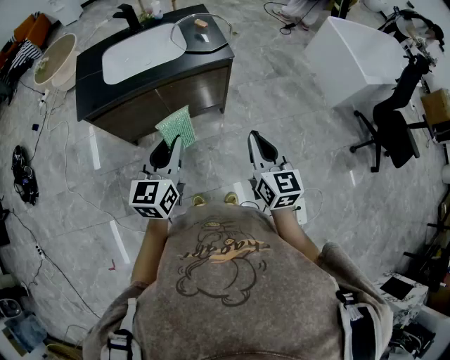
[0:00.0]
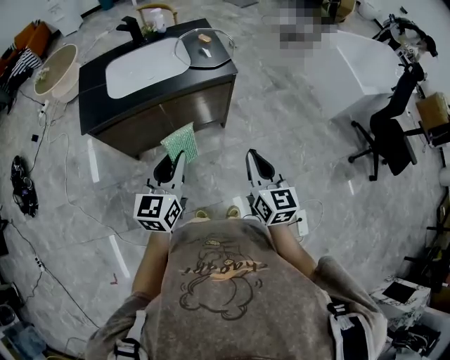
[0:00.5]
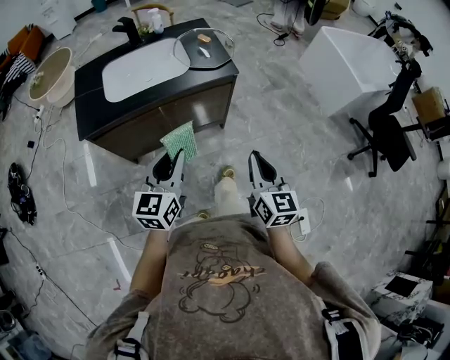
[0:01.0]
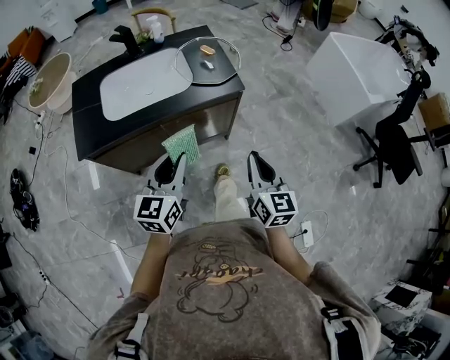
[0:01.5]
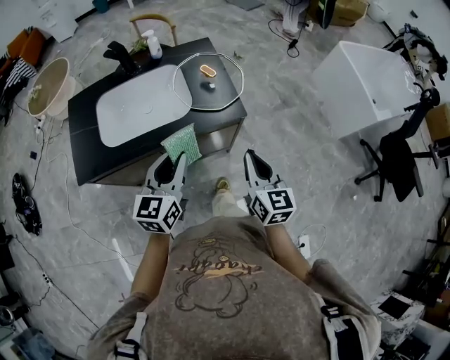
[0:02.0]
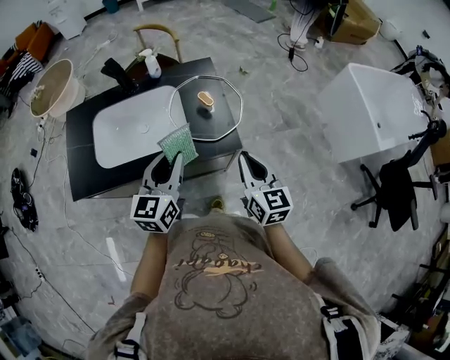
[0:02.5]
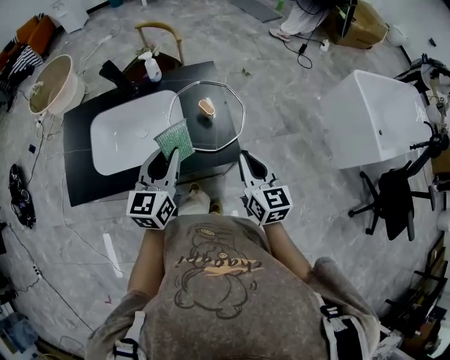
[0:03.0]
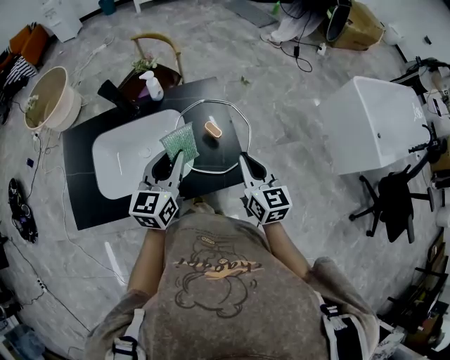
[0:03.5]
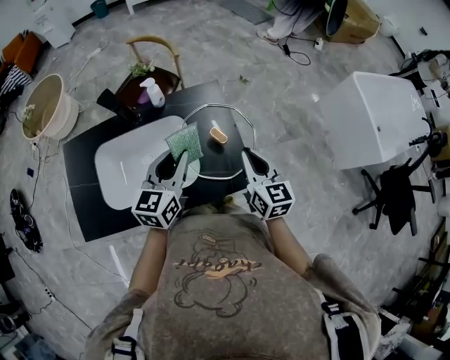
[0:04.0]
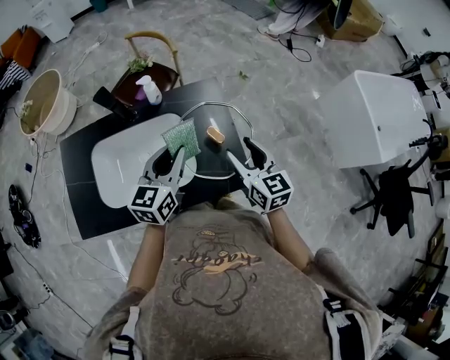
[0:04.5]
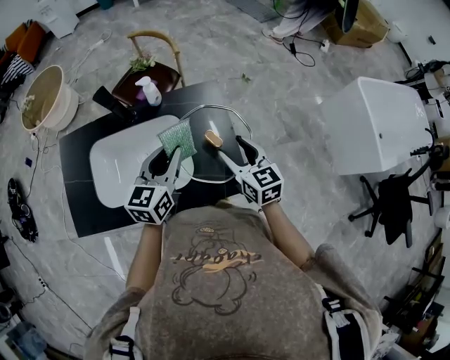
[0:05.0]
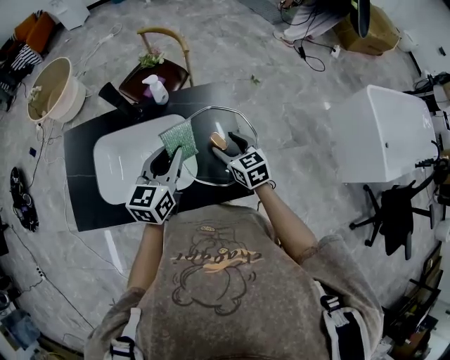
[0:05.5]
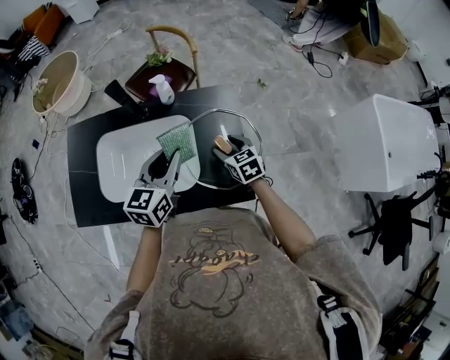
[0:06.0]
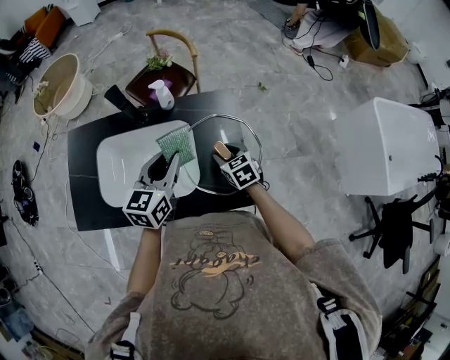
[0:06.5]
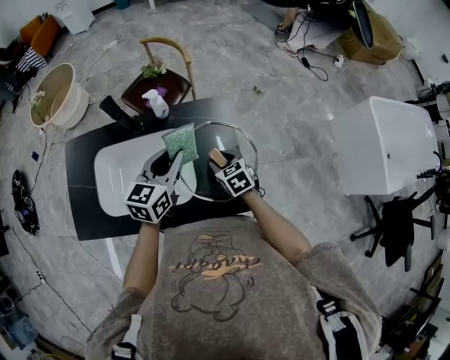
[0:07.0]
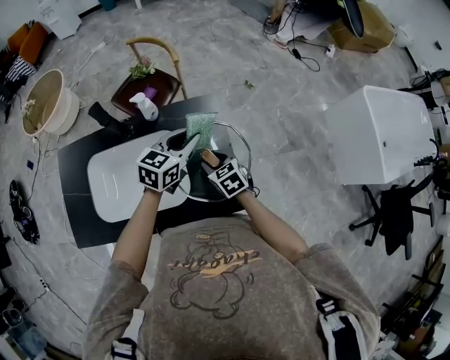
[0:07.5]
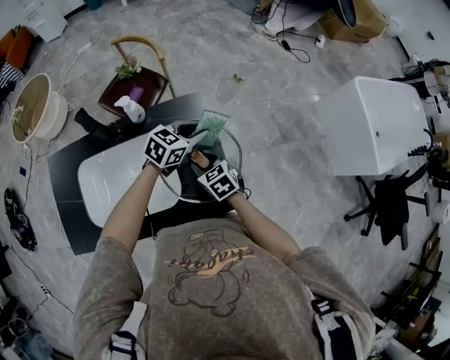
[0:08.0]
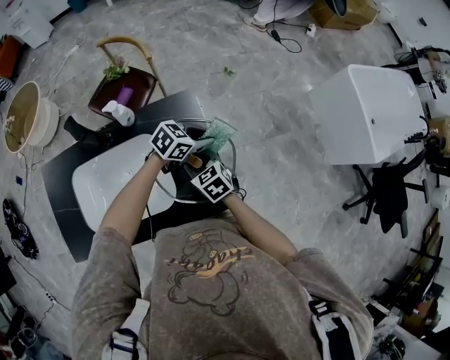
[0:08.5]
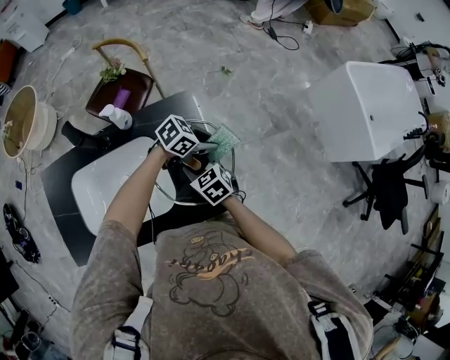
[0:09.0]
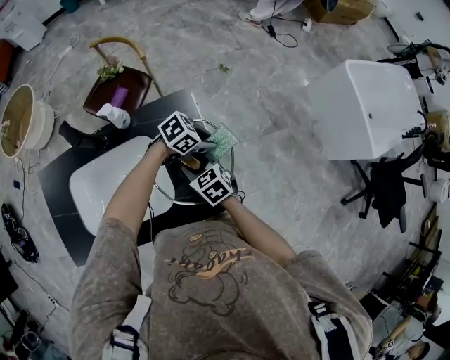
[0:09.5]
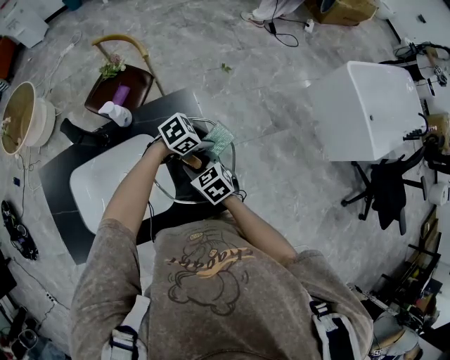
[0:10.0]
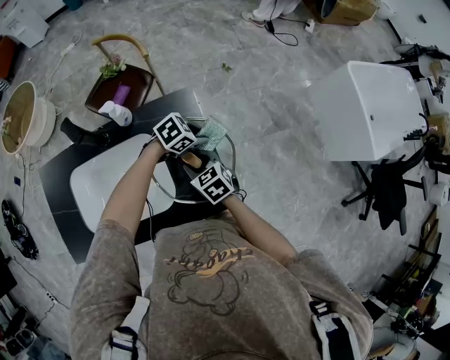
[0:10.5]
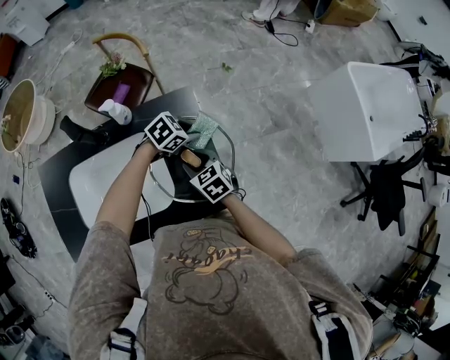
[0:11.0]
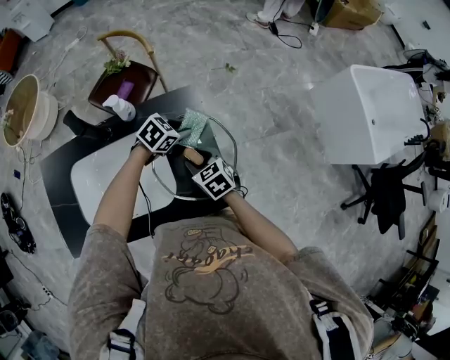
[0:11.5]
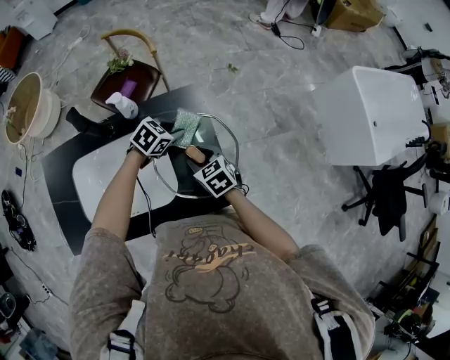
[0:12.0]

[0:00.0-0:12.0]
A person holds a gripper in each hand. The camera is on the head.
0:00.0 to 0:02.0: The grippers both shift forward by roughly 25 cm.
0:02.0 to 0:04.0: The two grippers go about 30 cm forward.
0:04.0 to 0:06.0: The right gripper moves downward and forward, approximately 20 cm, swivels some 40 degrees, and opens up.
0:06.0 to 0:08.0: The left gripper travels to the right, forward and downward by some 25 cm, and rotates some 40 degrees.
0:08.0 to 0:10.0: The left gripper shifts approximately 10 cm downward, and rotates approximately 30 degrees.
0:10.0 to 0:12.0: The left gripper ends up some 10 cm from where it was, and rotates roughly 20 degrees.

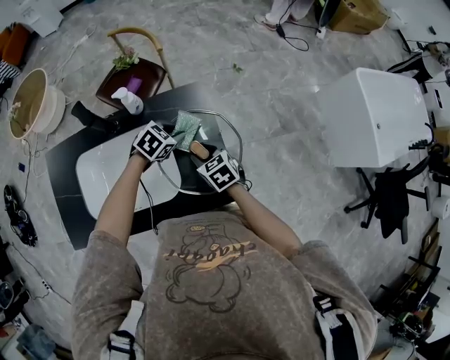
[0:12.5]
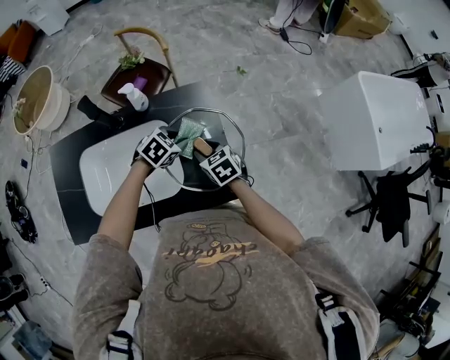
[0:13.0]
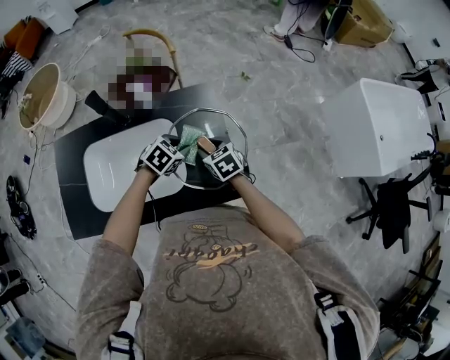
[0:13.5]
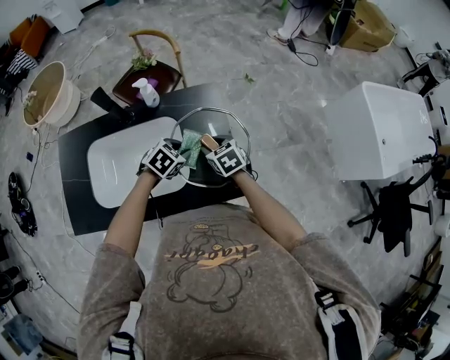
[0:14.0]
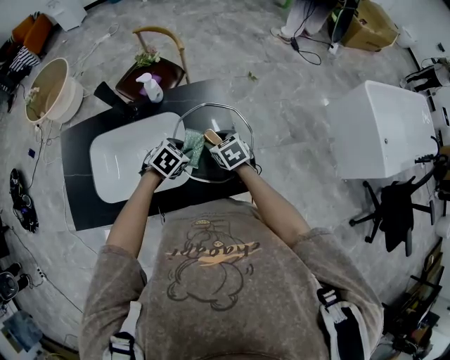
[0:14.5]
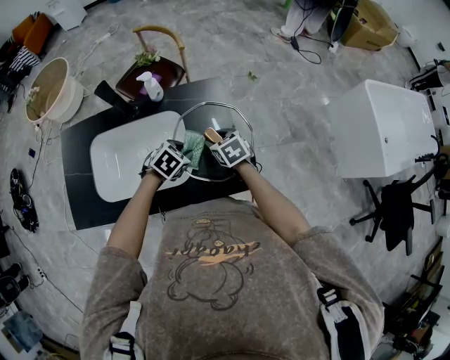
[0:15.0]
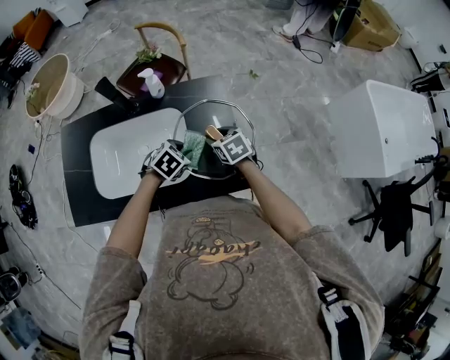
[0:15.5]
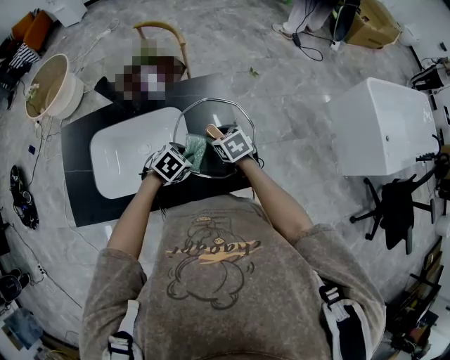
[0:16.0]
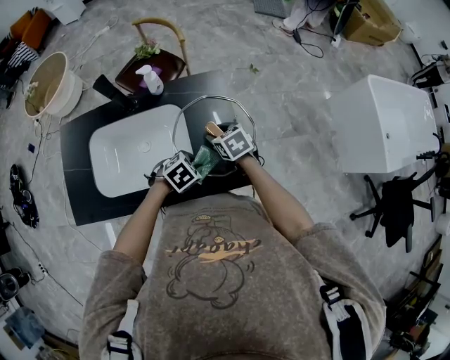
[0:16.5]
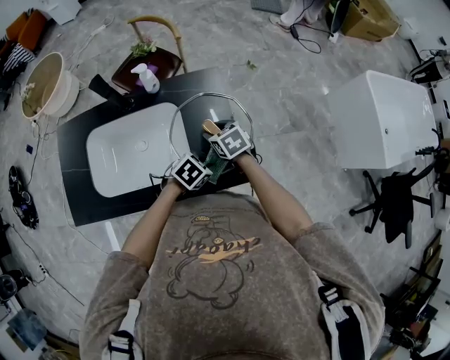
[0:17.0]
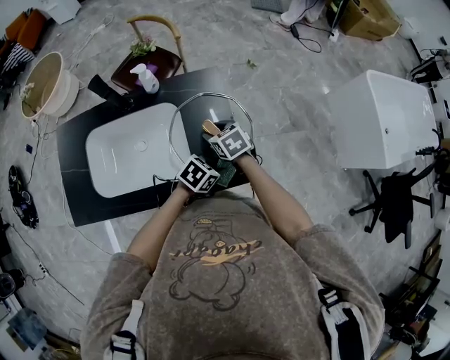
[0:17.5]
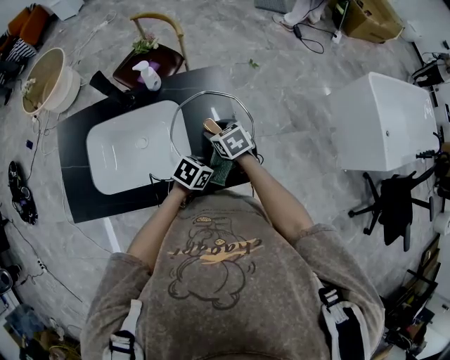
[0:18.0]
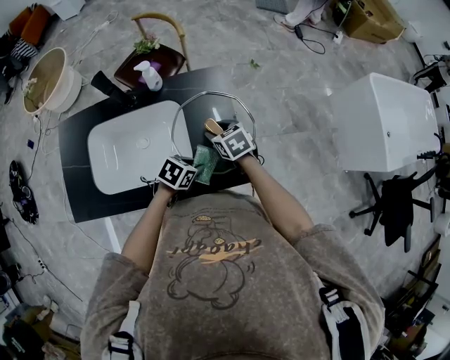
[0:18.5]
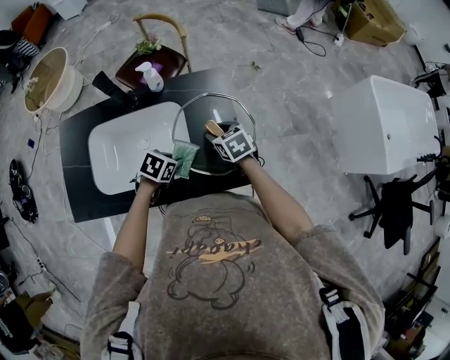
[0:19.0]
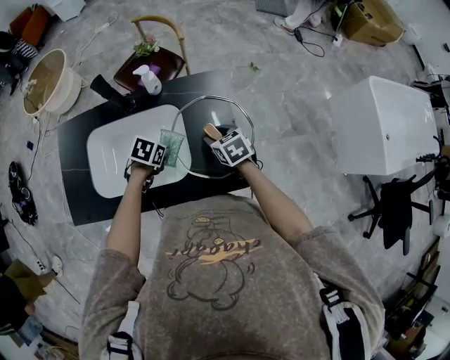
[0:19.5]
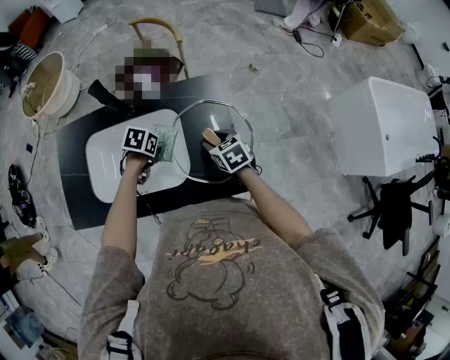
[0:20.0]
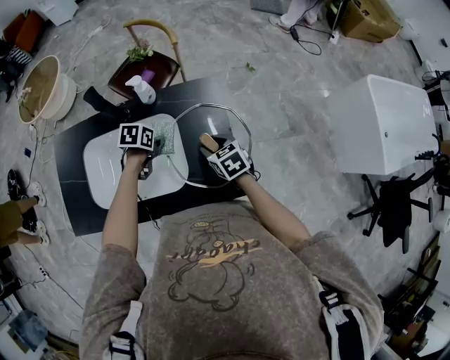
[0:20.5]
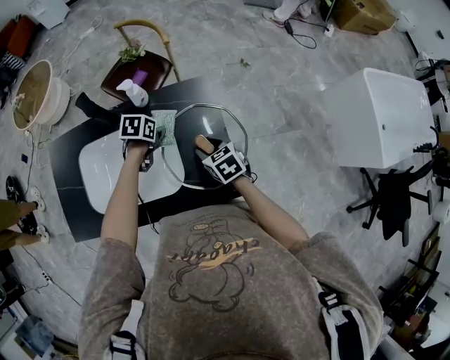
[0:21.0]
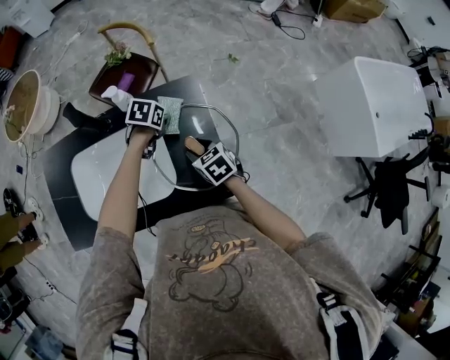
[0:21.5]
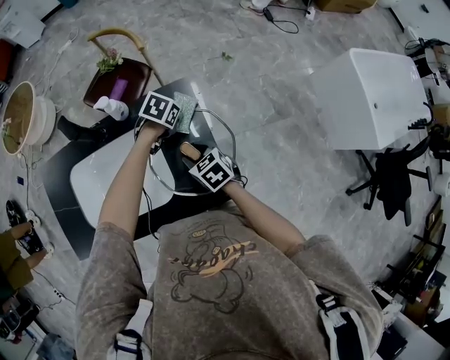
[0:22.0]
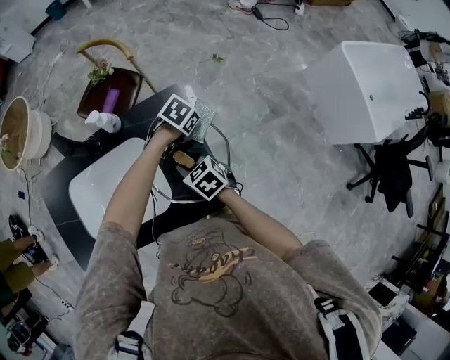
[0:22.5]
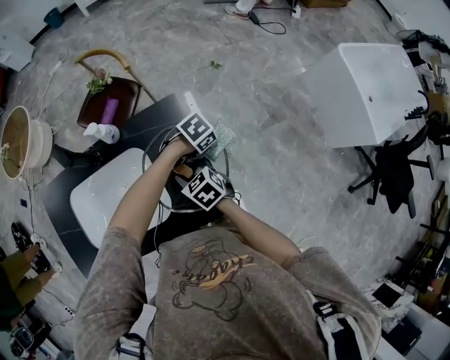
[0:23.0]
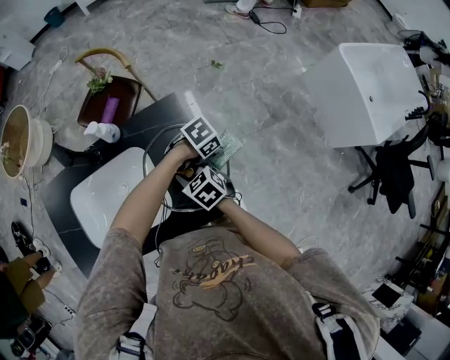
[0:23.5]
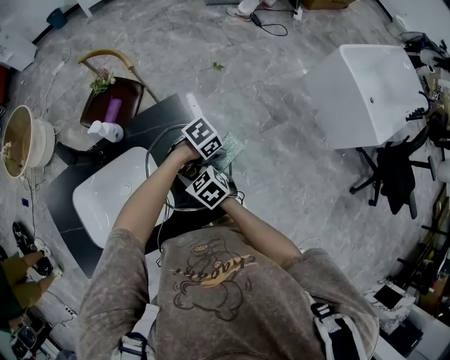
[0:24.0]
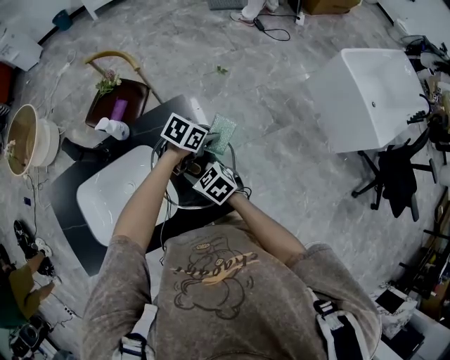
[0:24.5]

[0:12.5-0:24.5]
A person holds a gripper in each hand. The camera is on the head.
0:12.5 to 0:14.5: The left gripper is displaced backward by some 10 cm.
0:14.5 to 0:16.5: The left gripper shifts approximately 5 cm backward.
0:16.5 to 0:18.5: The left gripper turns by about 30 degrees.
0:18.5 to 0:20.5: The left gripper heads to the left and forward, covering approximately 20 cm, and swivels about 30 degrees.
0:20.5 to 0:22.5: The left gripper moves about 25 cm, and rolls clockwise, seen from behind, by roughly 40 degrees.
0:22.5 to 0:24.5: The left gripper changes its angle by some 20 degrees.

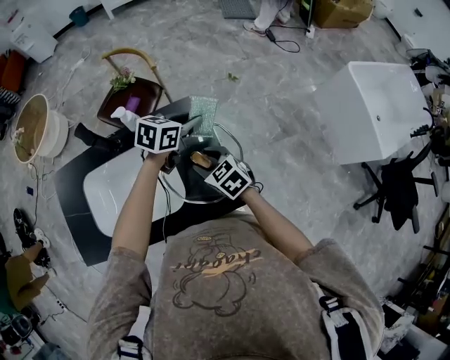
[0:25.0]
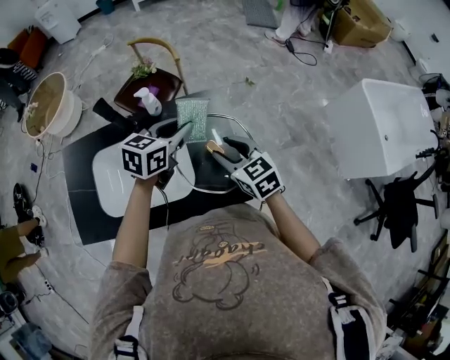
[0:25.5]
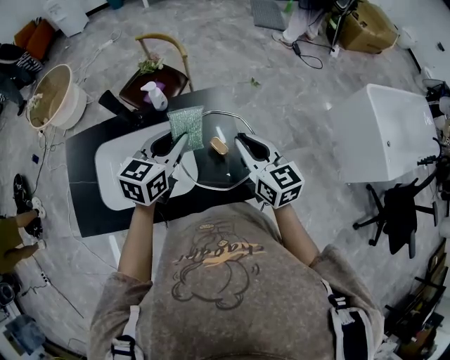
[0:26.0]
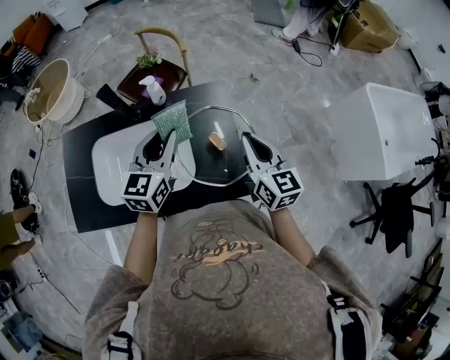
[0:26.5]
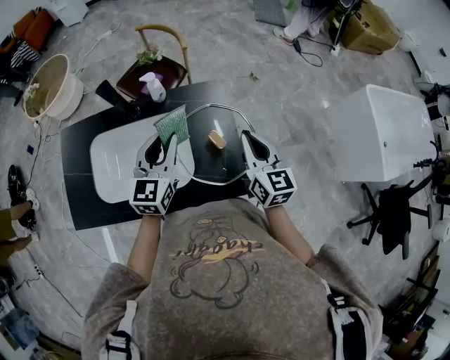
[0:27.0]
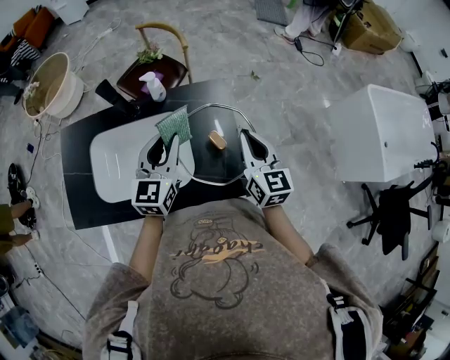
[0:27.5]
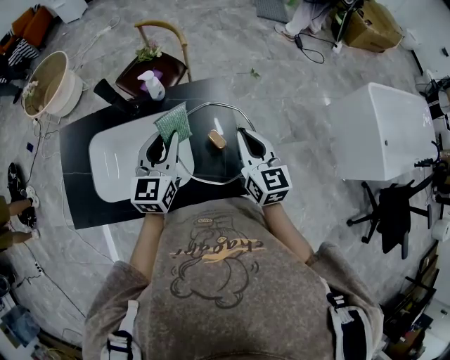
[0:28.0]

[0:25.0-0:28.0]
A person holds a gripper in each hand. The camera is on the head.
0:25.0 to 0:26.5: The left gripper goes roughly 20 cm to the left, backward and upward, and changes its angle by about 40 degrees, while the right gripper travels upward and to the right by approximately 15 cm, tilts its fingers about 30 degrees upward, and closes its fingers.
0:26.5 to 0:28.0: The grippers move only a little.
